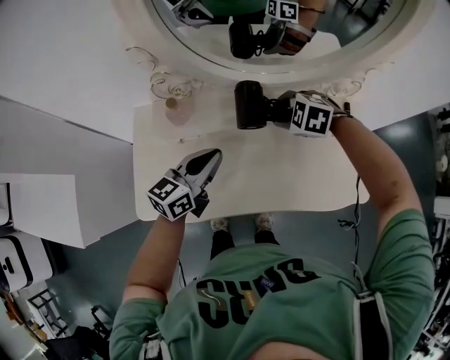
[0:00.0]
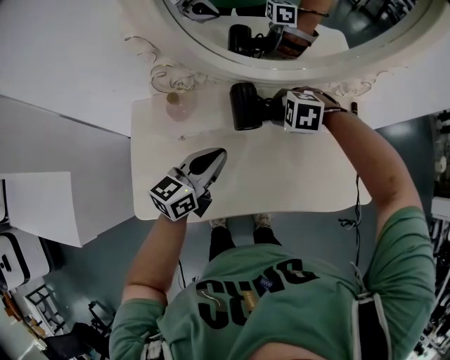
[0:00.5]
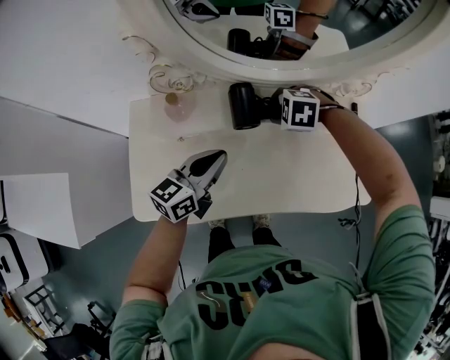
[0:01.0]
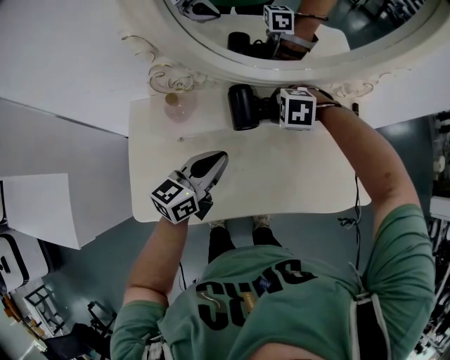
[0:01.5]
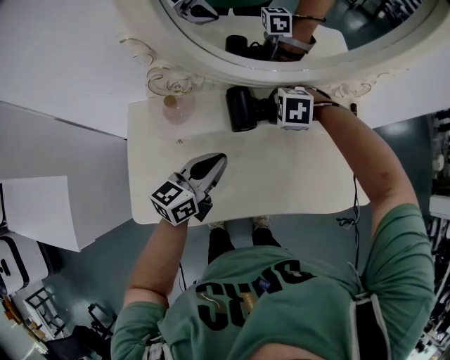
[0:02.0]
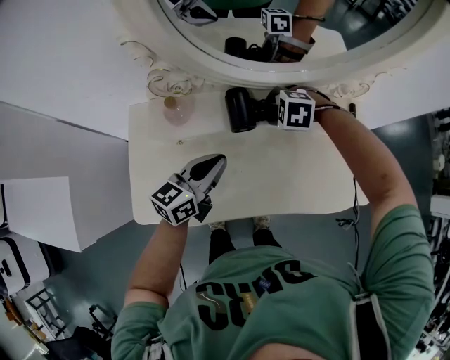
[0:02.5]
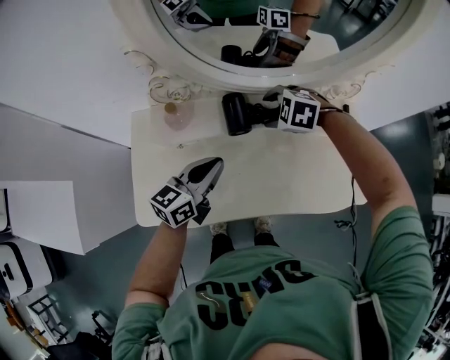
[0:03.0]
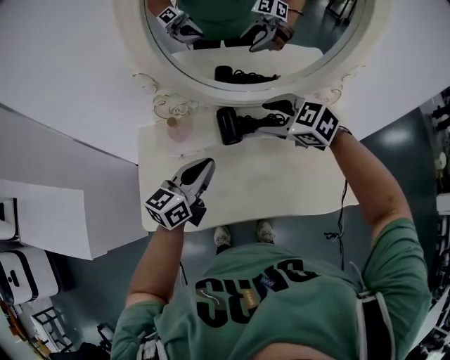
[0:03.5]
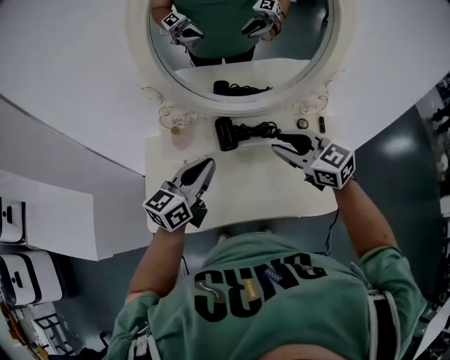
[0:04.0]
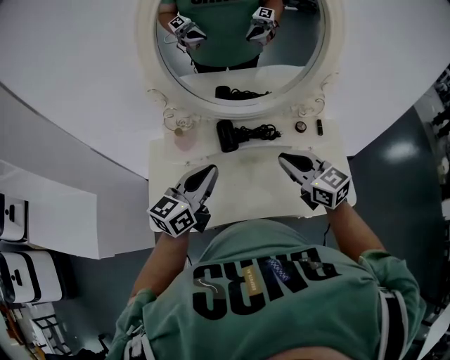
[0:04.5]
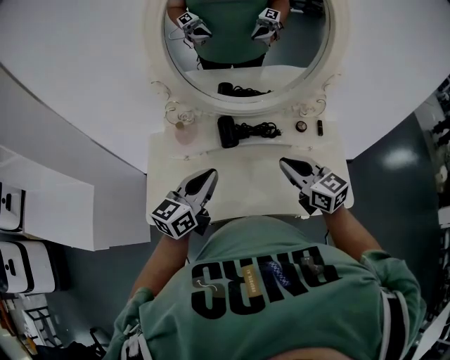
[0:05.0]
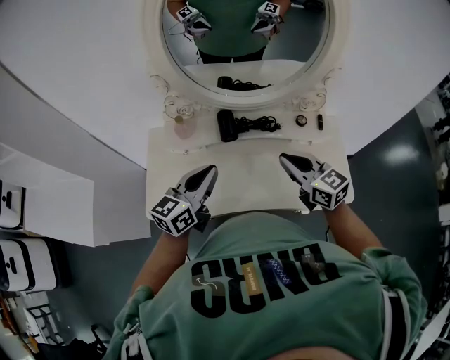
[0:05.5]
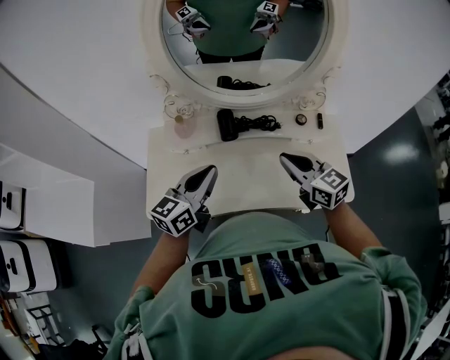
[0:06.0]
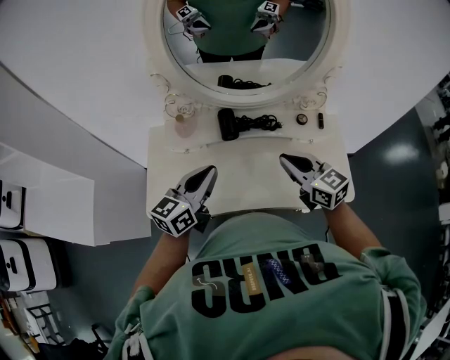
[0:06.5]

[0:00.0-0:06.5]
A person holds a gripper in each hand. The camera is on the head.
0.0 to 2.0 s: The right gripper goes about 5 cm downward.
2.0 to 4.5 s: The two grippers go about 20 cm upward. The right gripper points its fingers some 70 degrees further upward, and closes.
4.5 to 6.5 s: There are only small adjustments of the grippers.

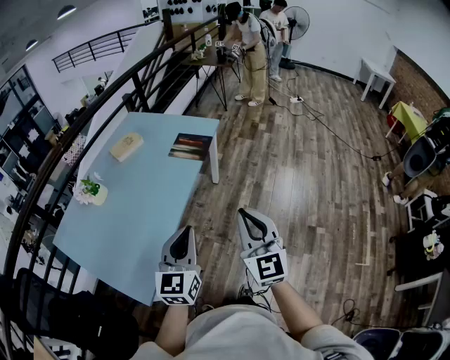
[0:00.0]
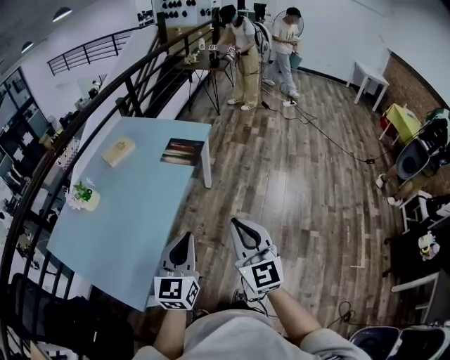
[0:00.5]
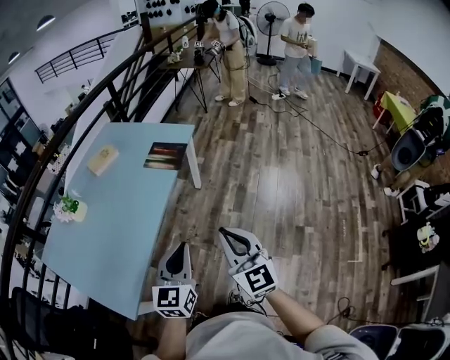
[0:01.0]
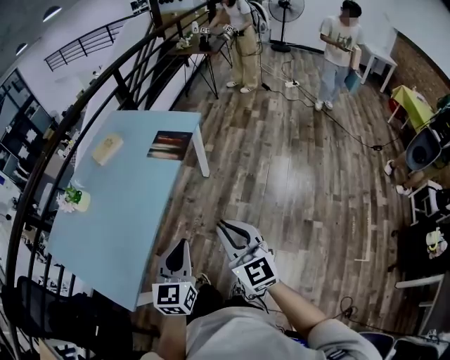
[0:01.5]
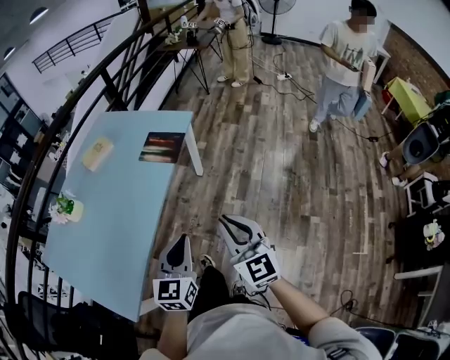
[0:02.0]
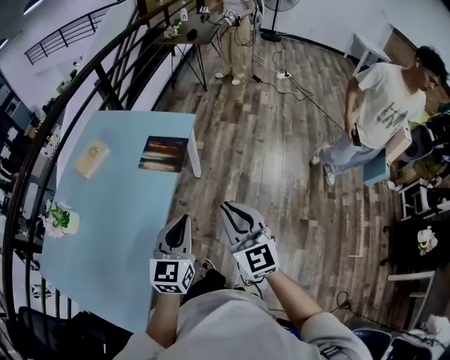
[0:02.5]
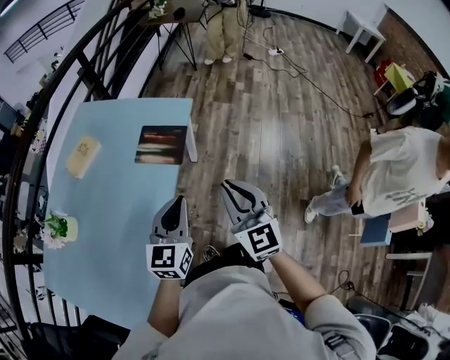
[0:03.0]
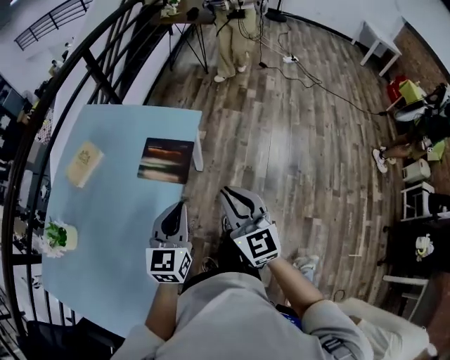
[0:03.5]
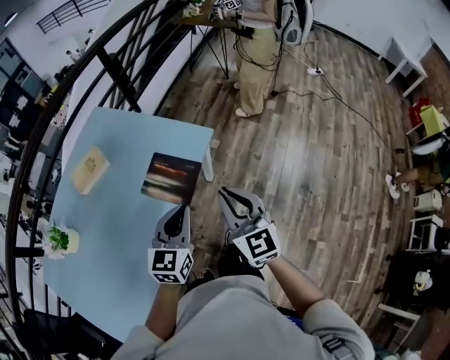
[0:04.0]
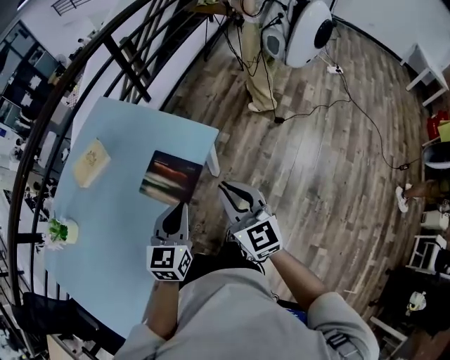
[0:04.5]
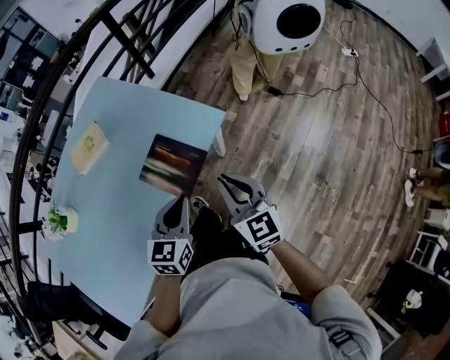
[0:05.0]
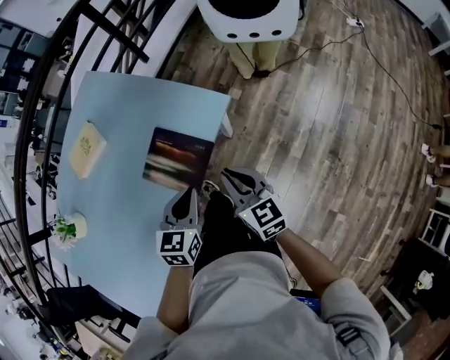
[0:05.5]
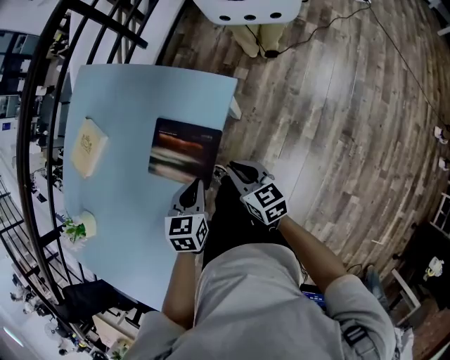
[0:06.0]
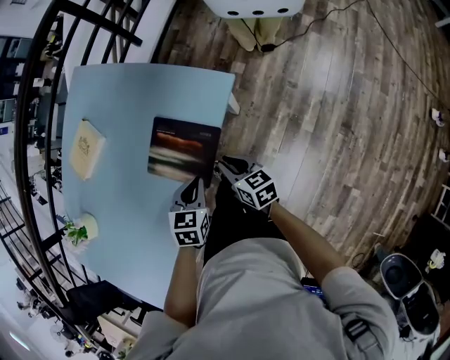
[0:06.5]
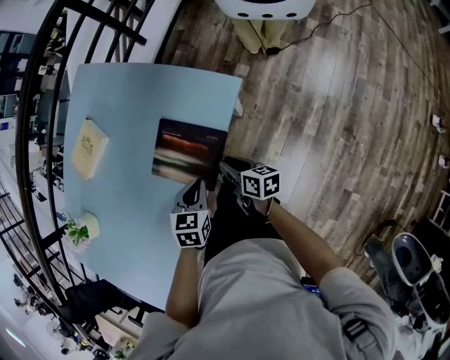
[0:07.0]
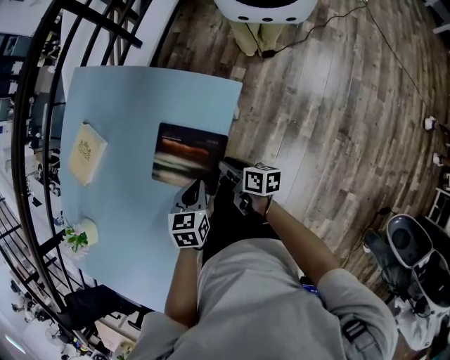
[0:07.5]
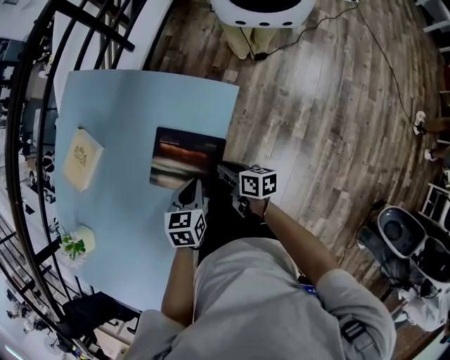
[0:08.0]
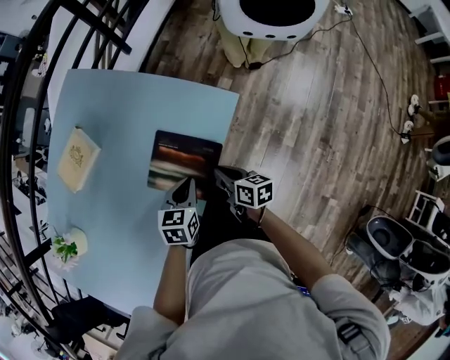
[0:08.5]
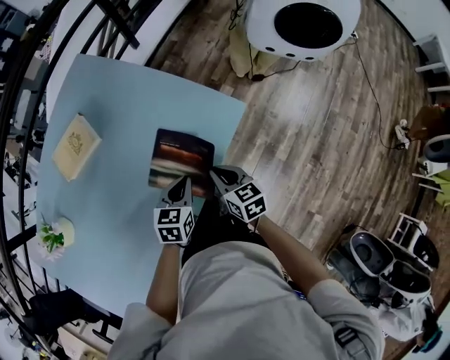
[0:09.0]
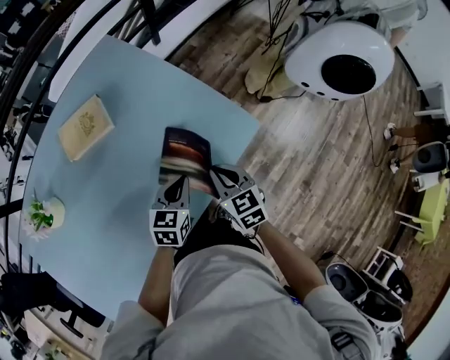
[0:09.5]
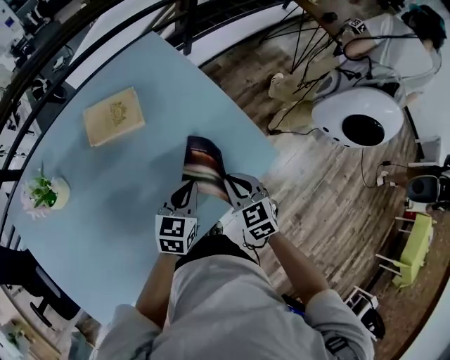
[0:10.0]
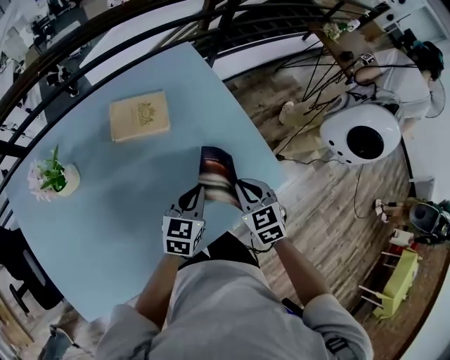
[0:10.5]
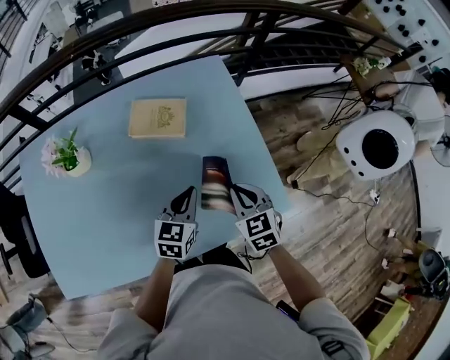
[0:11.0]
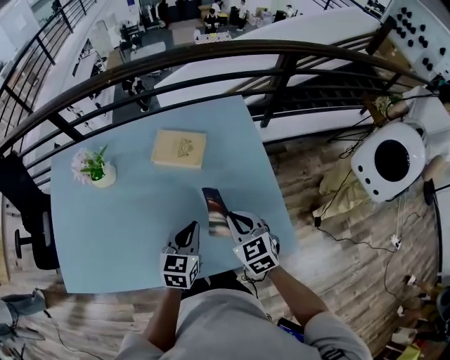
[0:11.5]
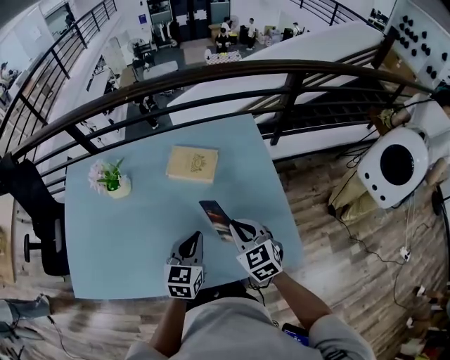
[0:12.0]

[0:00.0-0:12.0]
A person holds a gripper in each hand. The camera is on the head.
0.0 to 2.0 s: The right gripper goes some 15 cm forward, downward and to the right, while the left gripper moves to the right, forward and downward, roughly 15 cm.
2.0 to 4.0 s: The two grippers go approximately 40 cm forward.
4.0 to 6.0 s: Both grippers move downward, about 25 cm. The left gripper angles its fingers downward, by approximately 30 degrees. Meanwhile the right gripper rotates roughly 40 degrees.
6.0 to 8.0 s: The right gripper travels downward by roughly 5 cm, and changes its angle by some 40 degrees.
8.0 to 10.0 s: The left gripper moves to the left, upward and forward, about 15 cm, and rotates roughly 30 degrees; the right gripper is displaced upward, forward and to the left by some 20 cm, and twists about 80 degrees counterclockwise, seen from behind.
10.0 to 12.0 s: The right gripper ends up some 15 cm from where it was, and changes its angle by about 30 degrees; the left gripper heads upward, covering roughly 10 cm, and swivels some 40 degrees.

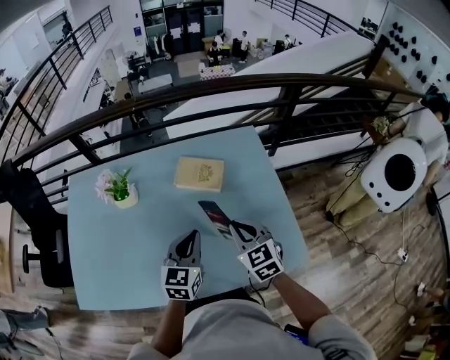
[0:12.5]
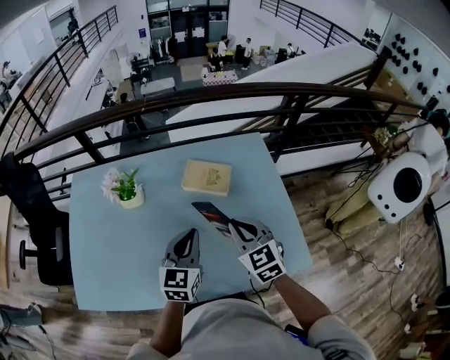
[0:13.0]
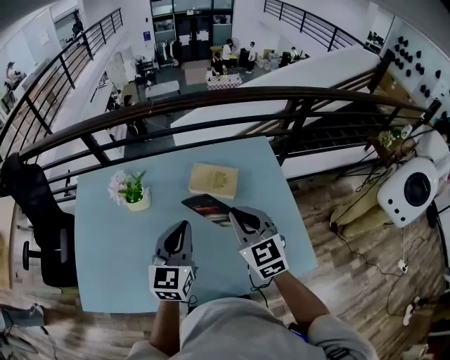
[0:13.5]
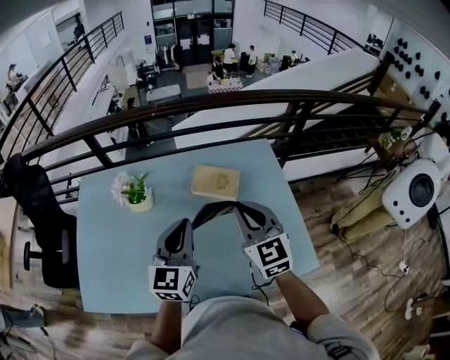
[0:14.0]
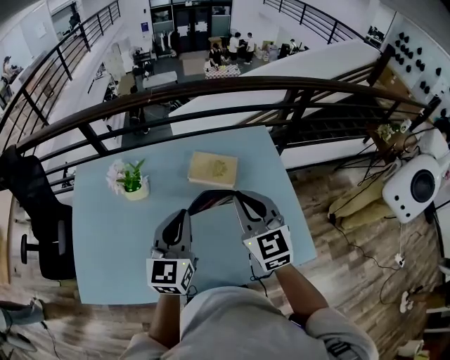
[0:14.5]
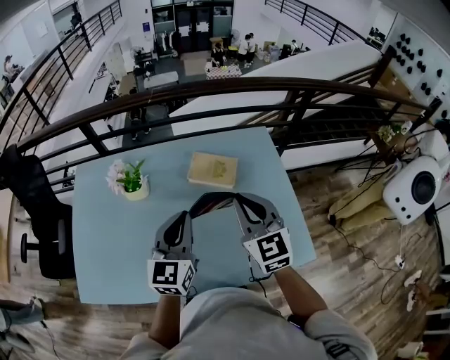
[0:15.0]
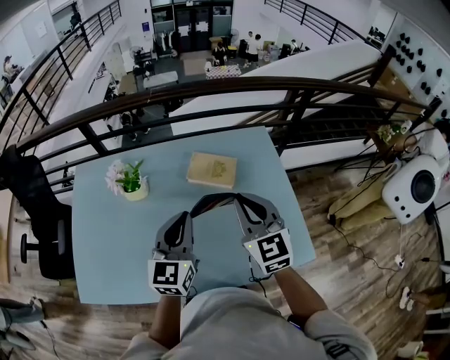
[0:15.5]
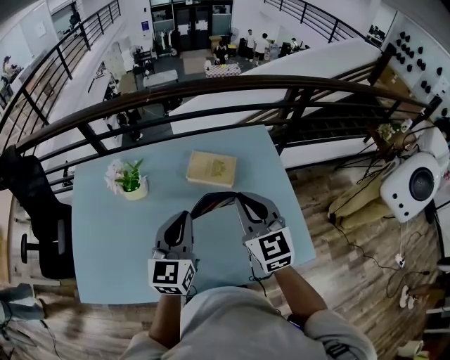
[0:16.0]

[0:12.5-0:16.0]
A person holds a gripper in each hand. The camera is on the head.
12.5 to 14.5 s: Both grippers move upward and to the left, approximately 15 cm.
14.5 to 16.0 s: The grippers stay close to where they were, moving slightly.

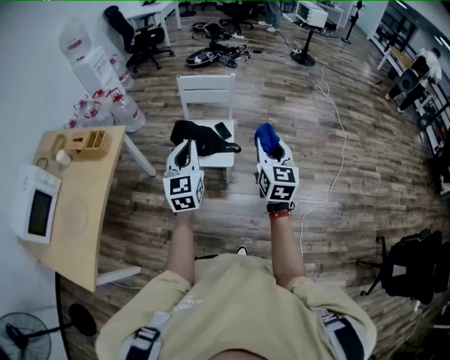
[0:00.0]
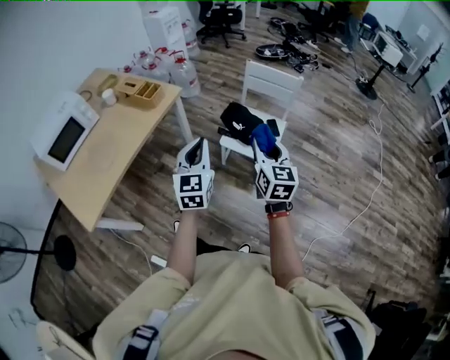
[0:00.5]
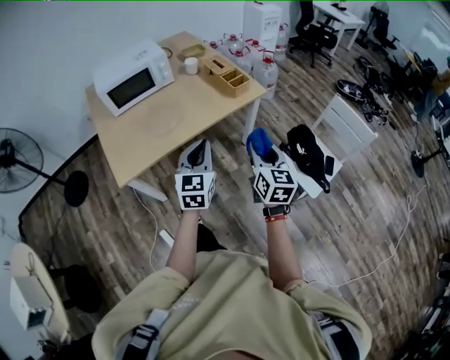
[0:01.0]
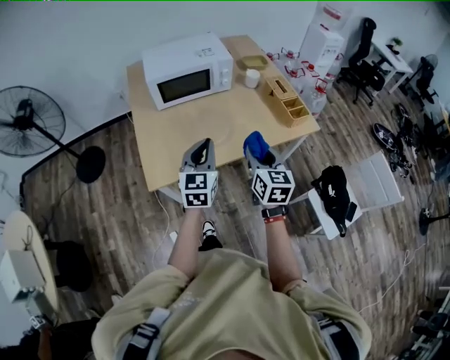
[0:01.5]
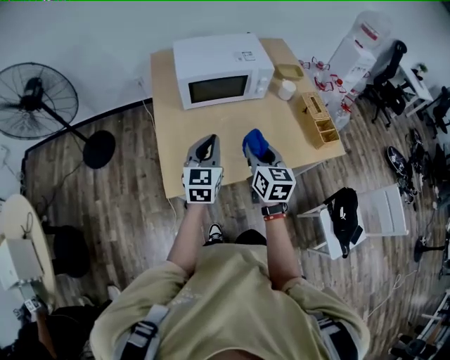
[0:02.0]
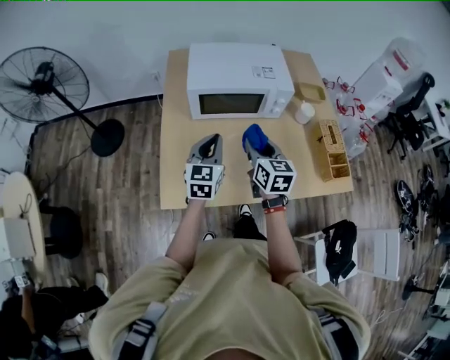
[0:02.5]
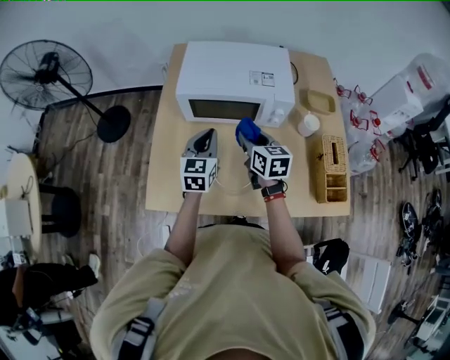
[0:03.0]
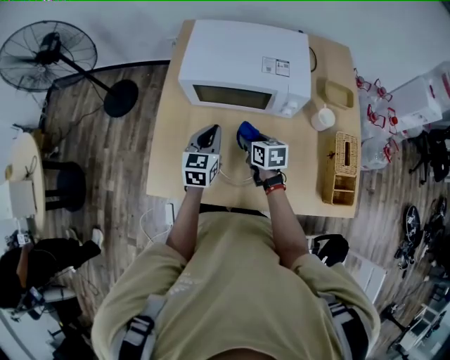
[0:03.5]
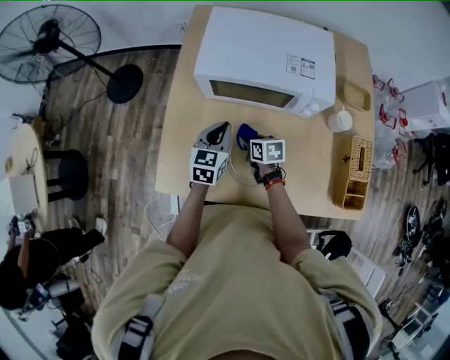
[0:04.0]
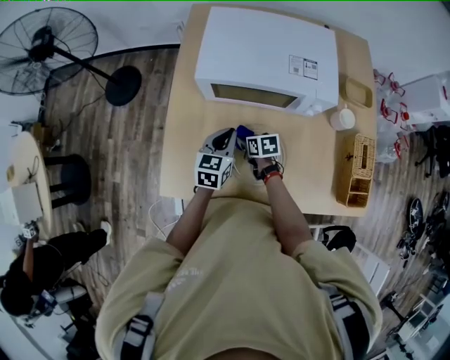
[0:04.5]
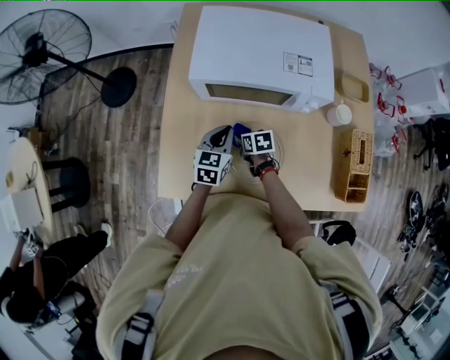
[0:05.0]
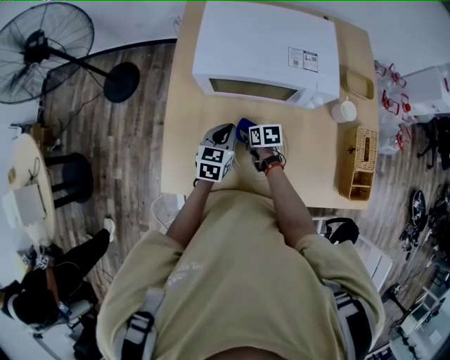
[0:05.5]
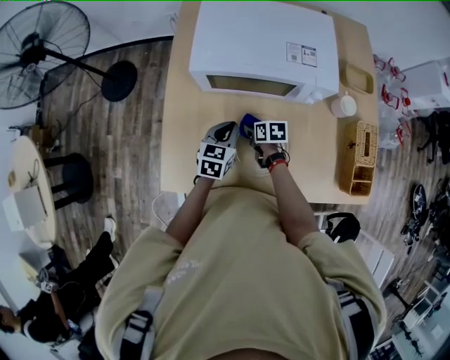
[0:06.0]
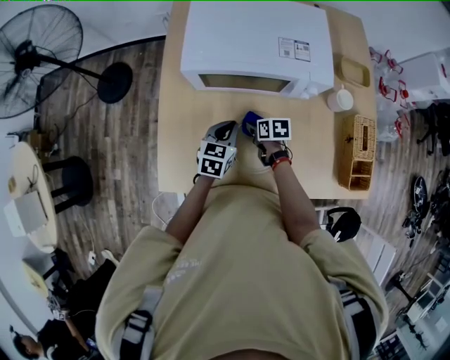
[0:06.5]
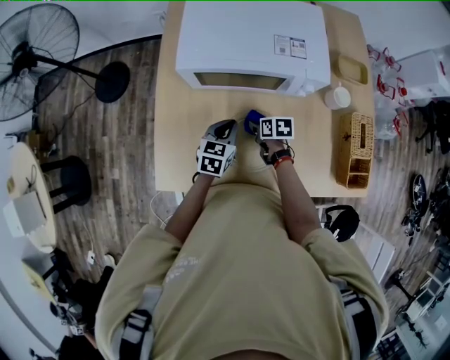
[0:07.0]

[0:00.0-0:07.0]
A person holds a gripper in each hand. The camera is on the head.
0.0 to 2.0 s: The two grippers travel together, about 90 cm. The right gripper swivels some 80 degrees. Meanwhile the left gripper turns by some 60 degrees.
2.0 to 3.5 s: The right gripper moves some 35 cm, and rotates roughly 40 degrees. The left gripper ends up roughly 25 cm from where it was, and changes its angle by some 20 degrees.
3.5 to 5.0 s: The left gripper travels downward by about 5 cm. The right gripper moves downward and to the left, about 15 cm.
5.0 to 7.0 s: The right gripper is displaced to the right by about 10 cm; the left gripper changes place by some 5 cm.
